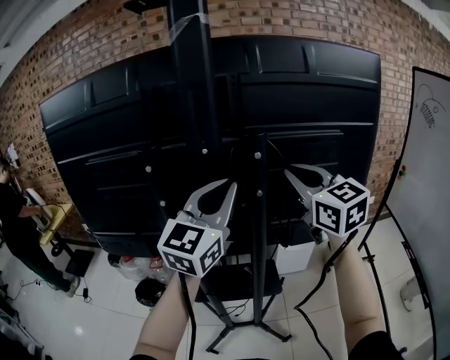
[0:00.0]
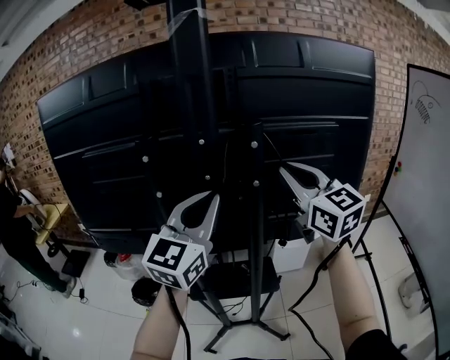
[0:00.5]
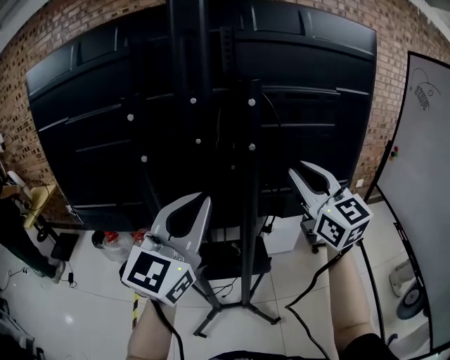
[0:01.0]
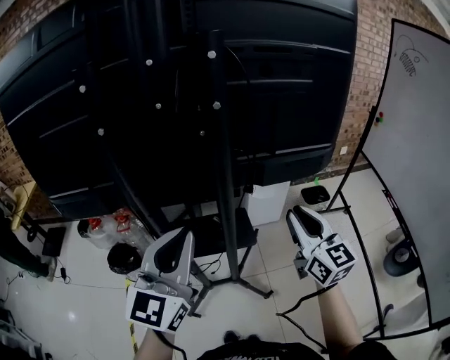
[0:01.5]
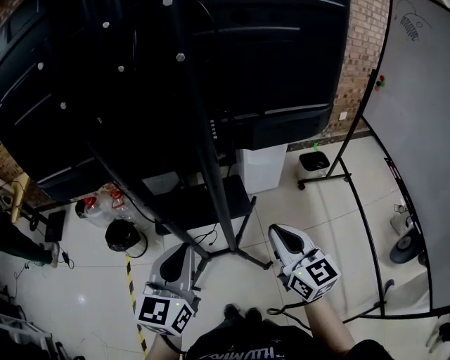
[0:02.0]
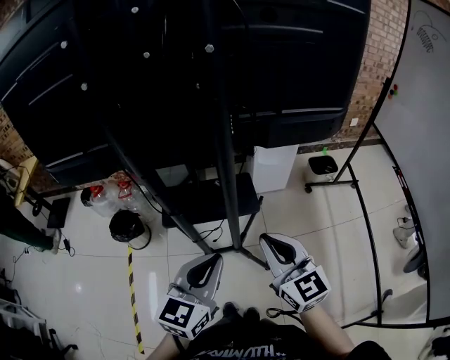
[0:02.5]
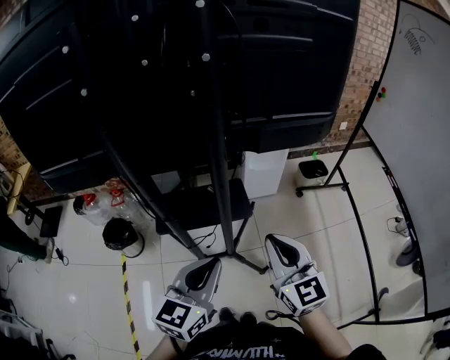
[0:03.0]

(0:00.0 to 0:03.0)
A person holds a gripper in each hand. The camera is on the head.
0:00.0 - 0:01.5: Both grippers travel together downward and backward, approximately 25 cm.
0:01.5 - 0:03.0: The left gripper moves downward and backward, roughly 20 cm, and swivels roughly 30 degrees; the right gripper heads backward, downward and to the left, covering about 15 cm.

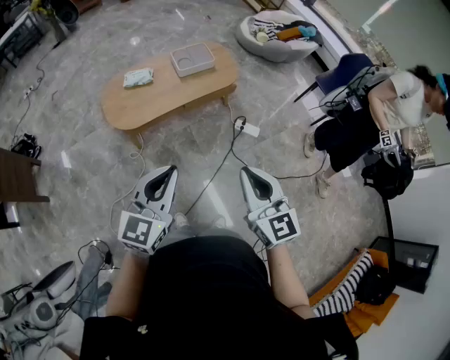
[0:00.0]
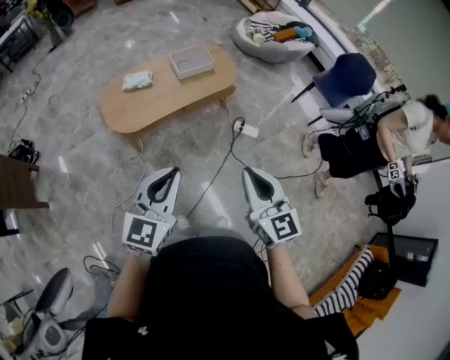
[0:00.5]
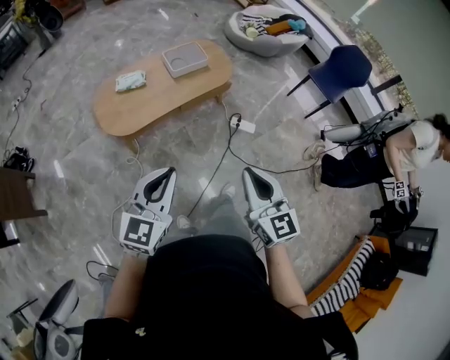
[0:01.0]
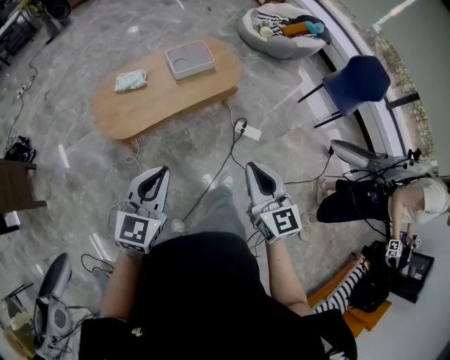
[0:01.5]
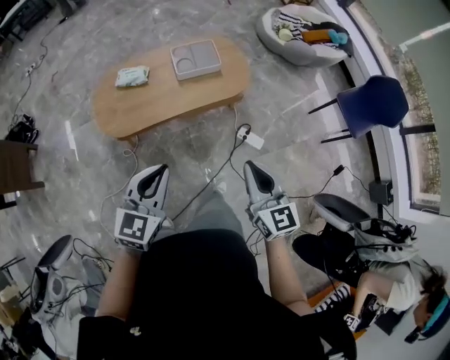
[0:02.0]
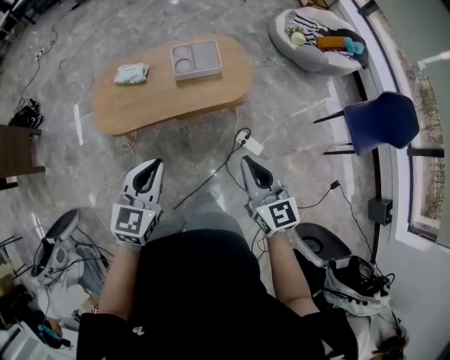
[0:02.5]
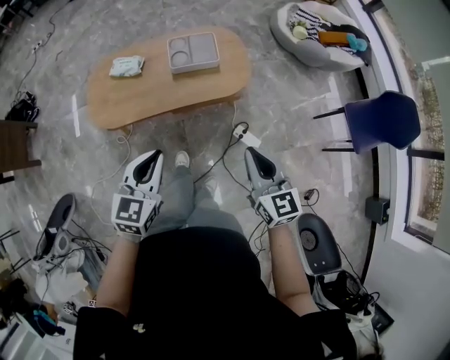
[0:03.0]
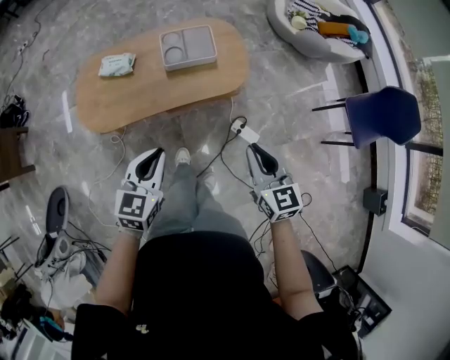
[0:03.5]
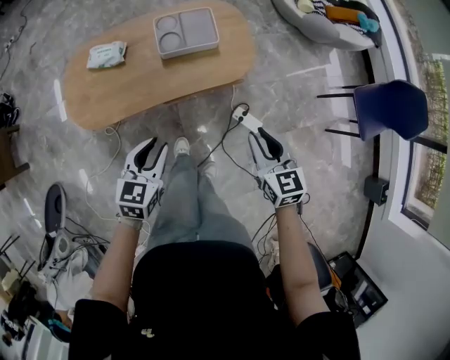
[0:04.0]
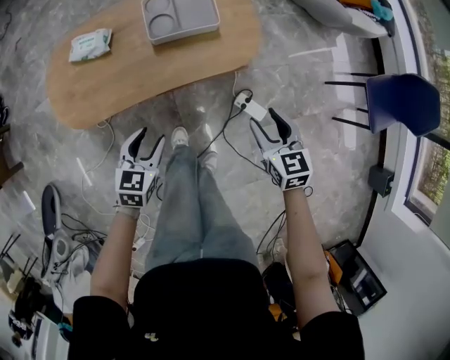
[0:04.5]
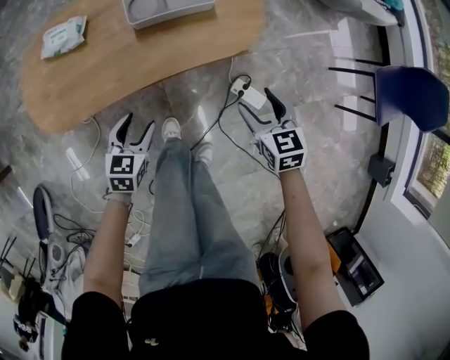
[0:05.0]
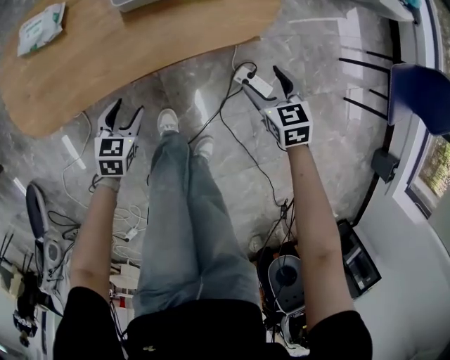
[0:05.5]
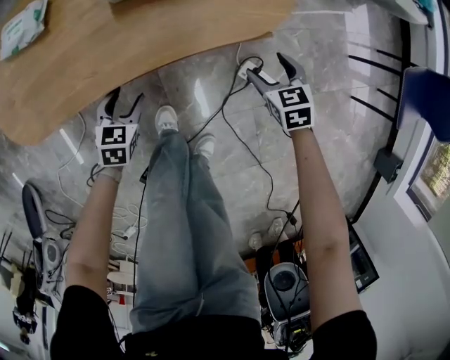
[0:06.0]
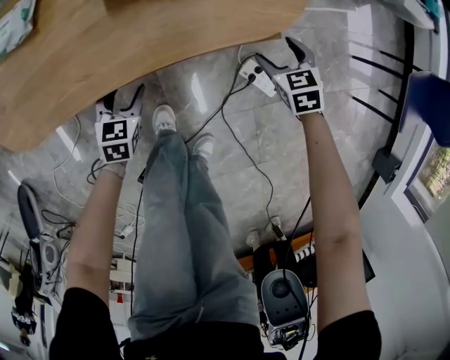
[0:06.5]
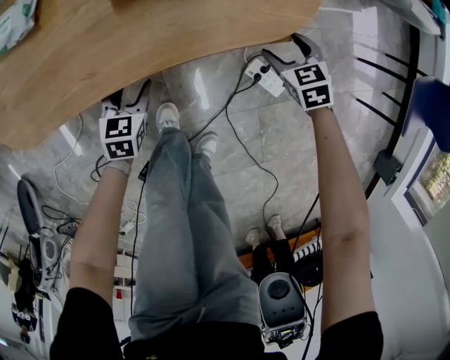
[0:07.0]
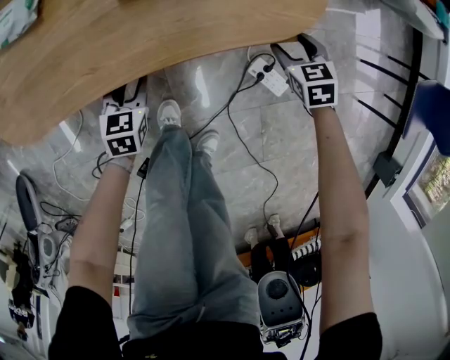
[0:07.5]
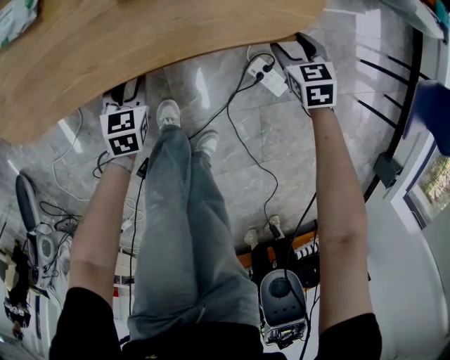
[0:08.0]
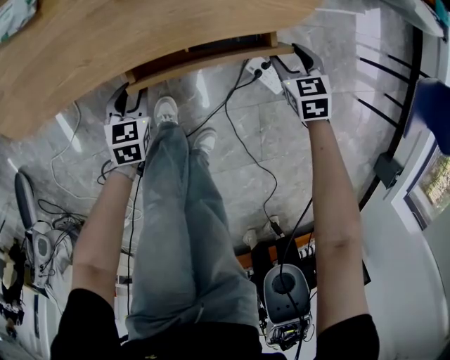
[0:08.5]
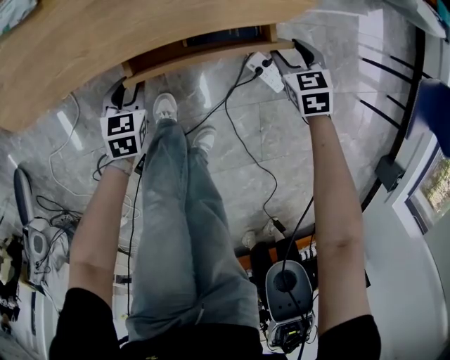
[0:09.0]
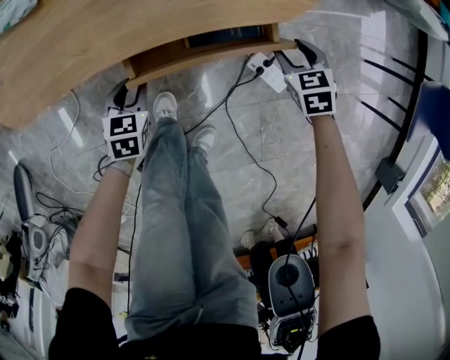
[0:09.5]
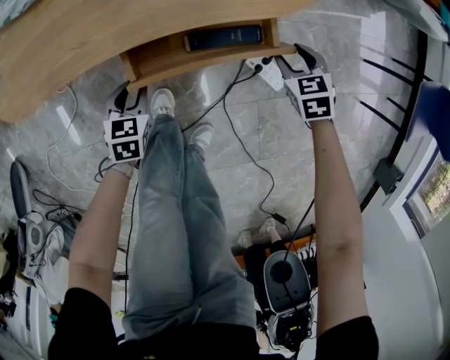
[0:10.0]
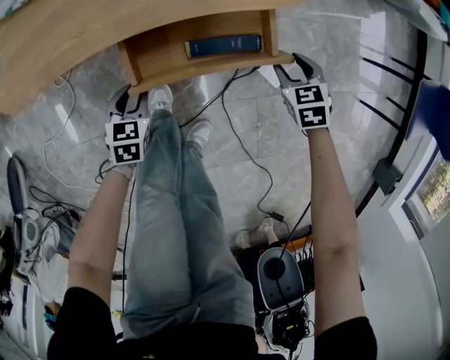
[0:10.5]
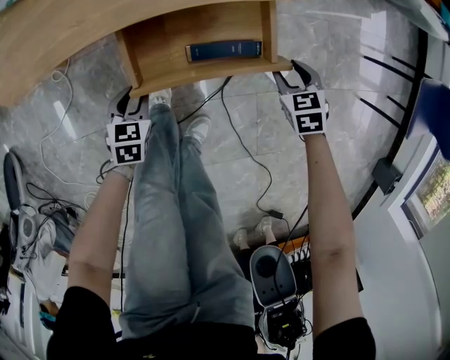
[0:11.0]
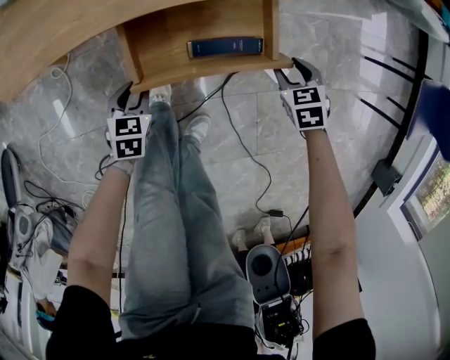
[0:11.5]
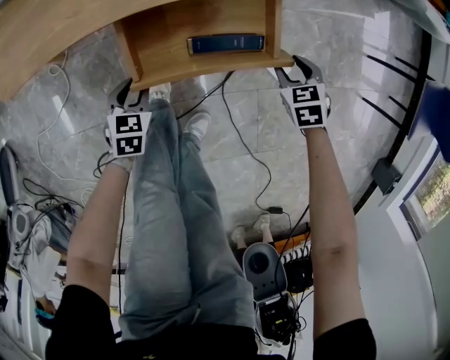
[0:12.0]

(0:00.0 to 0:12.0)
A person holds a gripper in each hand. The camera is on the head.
0:00.0 - 0:02.0: Both grippers travel together forward, approximately 25 cm.
0:02.0 - 0:04.0: The left gripper is displaced downward and forward by about 30 cm, swivels approximately 20 degrees, and opens up, while the right gripper goes about 30 cm forward and downward.
0:04.0 - 0:06.0: The grippers both shift downward by roughly 50 cm. The left gripper opens up. Meanwhile the right gripper rotates about 30 degrees, and opens its fingers.
0:06.0 - 0:08.0: The left gripper closes its fingers. Meanwhile the right gripper heads forward, covering about 5 cm.
0:08.0 - 0:10.0: Both grippers travel together backward, approximately 10 cm.
0:10.0 - 0:12.0: The grippers both shift backward by roughly 10 cm.

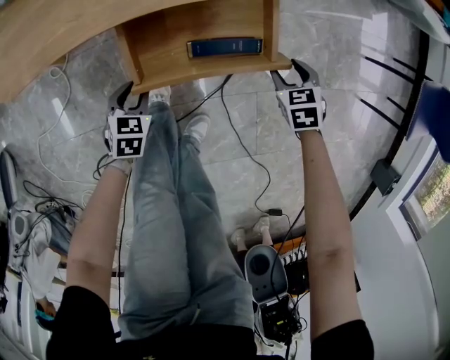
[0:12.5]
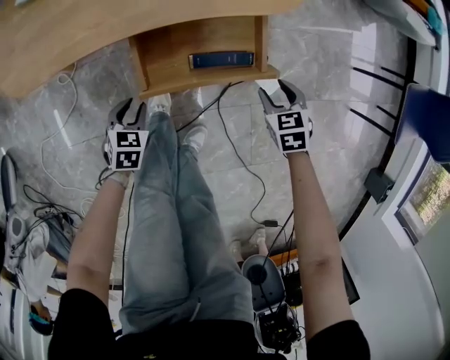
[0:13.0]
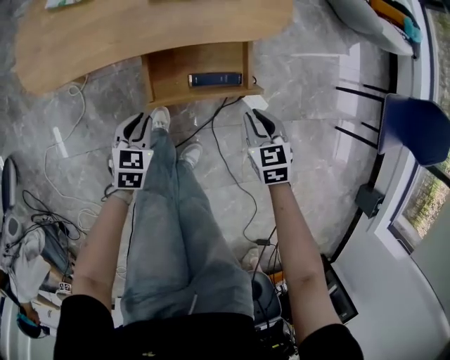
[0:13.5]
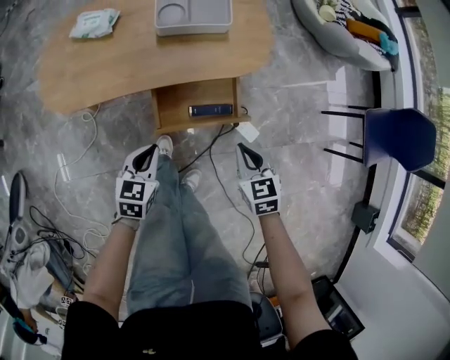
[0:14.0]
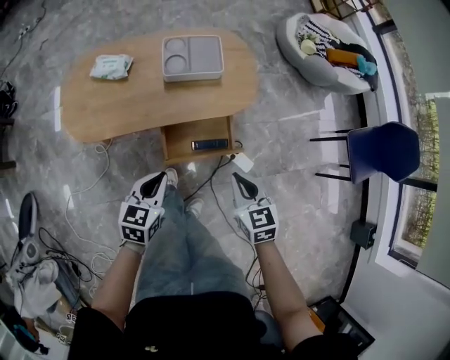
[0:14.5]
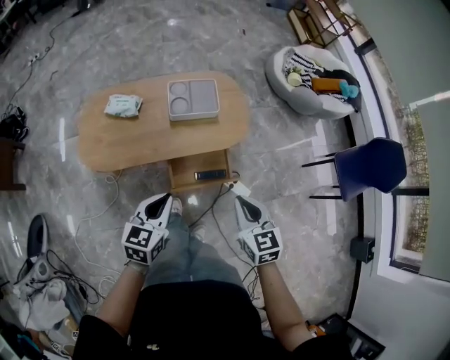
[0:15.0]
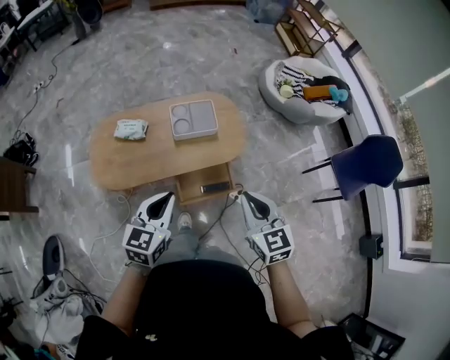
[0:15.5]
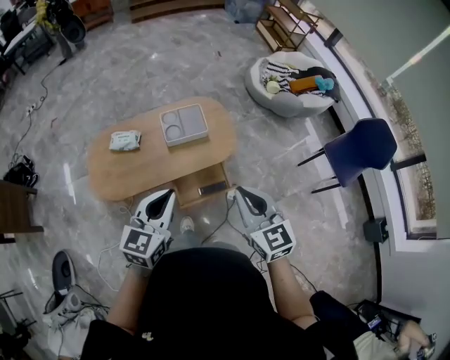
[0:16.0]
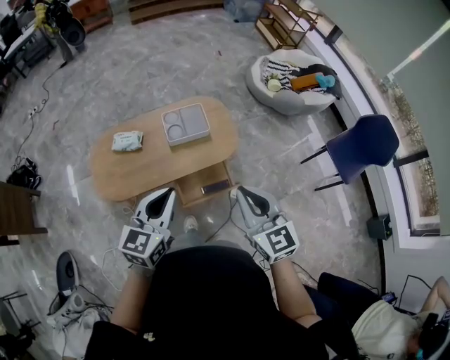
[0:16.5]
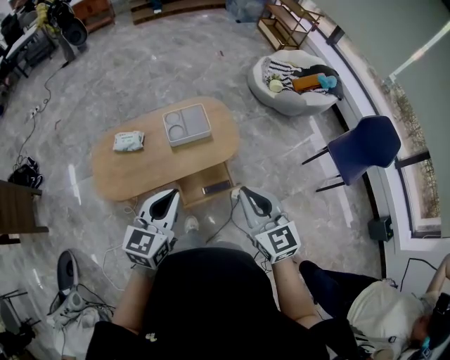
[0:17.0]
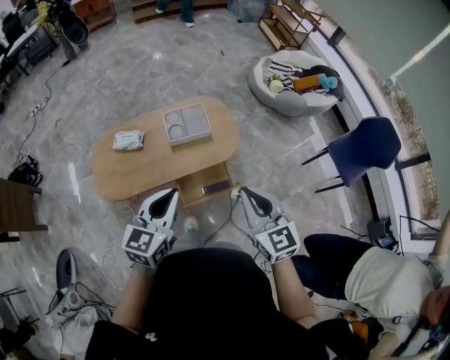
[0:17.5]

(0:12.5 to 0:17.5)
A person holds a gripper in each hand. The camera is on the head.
0:12.5 - 0:15.0: The grippers both shift upward by some 60 cm. The left gripper tips its fingers upward by about 30 degrees, and closes; the right gripper angles its fingers upward, by approximately 40 degrees, and closes its fingers.
0:15.0 - 0:17.5: Both grippers travel together upward, approximately 20 cm.

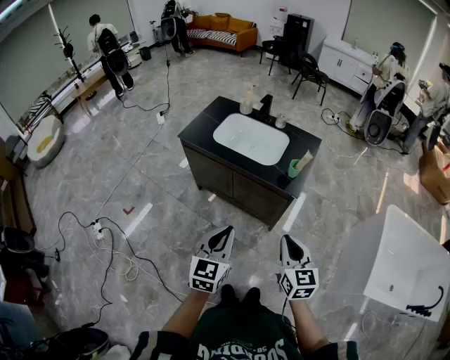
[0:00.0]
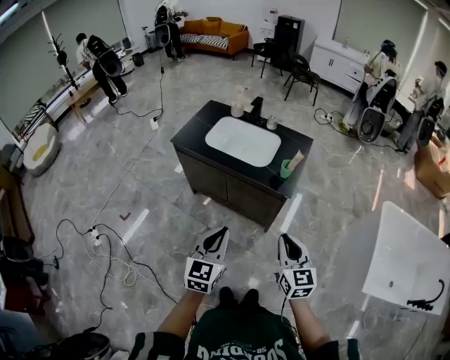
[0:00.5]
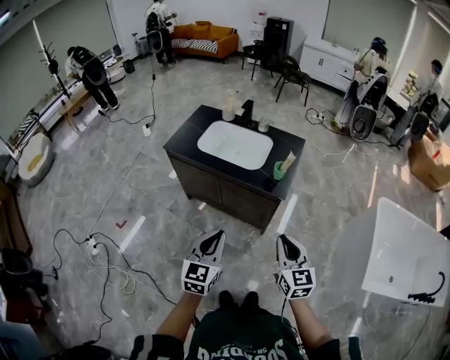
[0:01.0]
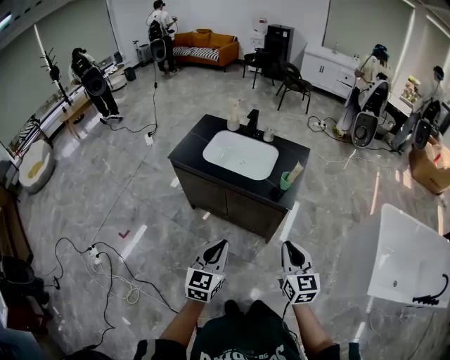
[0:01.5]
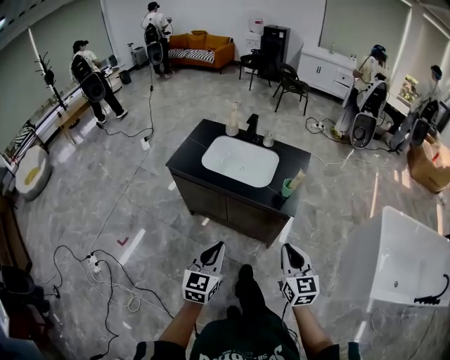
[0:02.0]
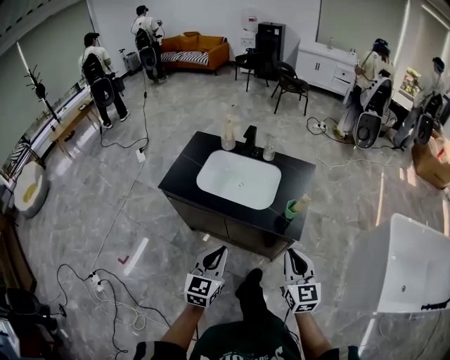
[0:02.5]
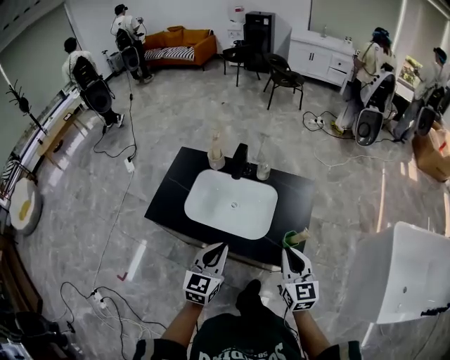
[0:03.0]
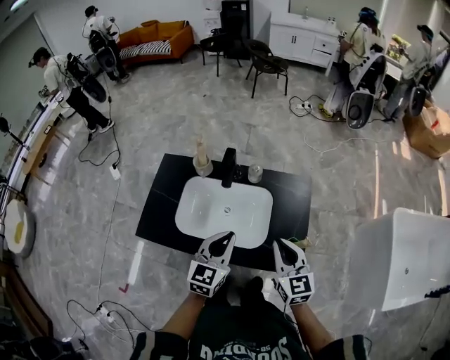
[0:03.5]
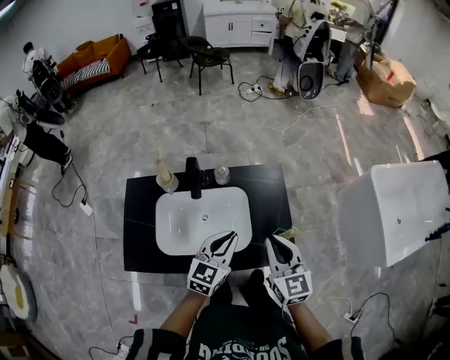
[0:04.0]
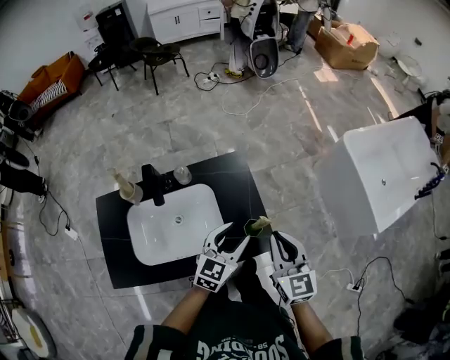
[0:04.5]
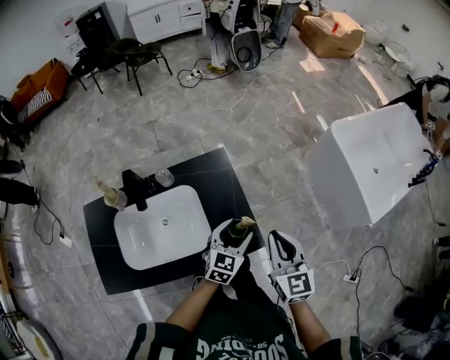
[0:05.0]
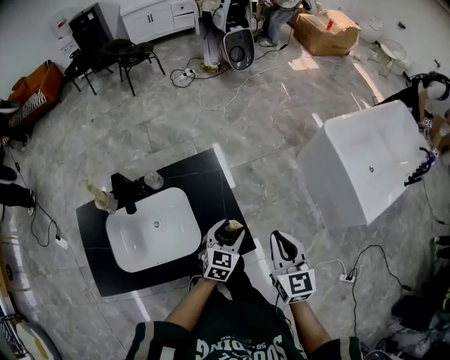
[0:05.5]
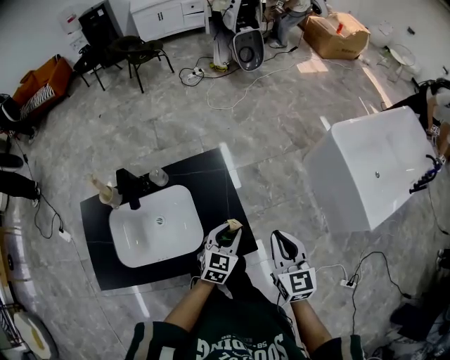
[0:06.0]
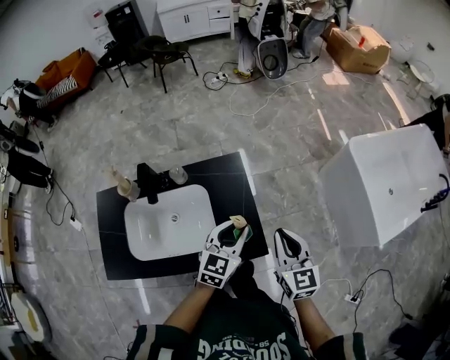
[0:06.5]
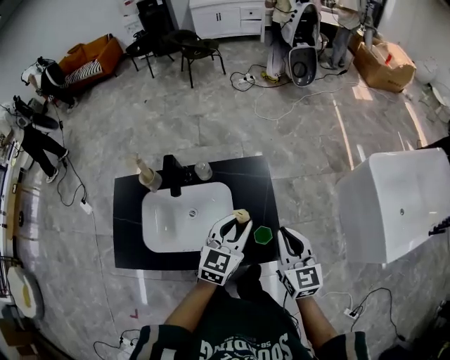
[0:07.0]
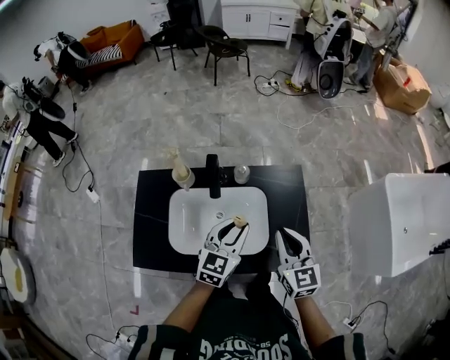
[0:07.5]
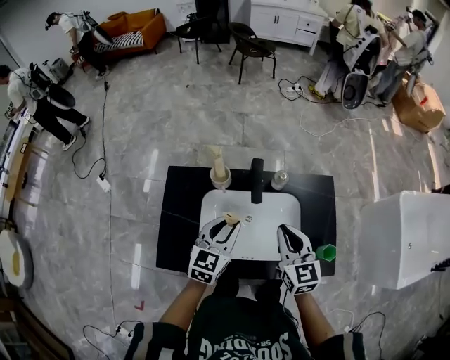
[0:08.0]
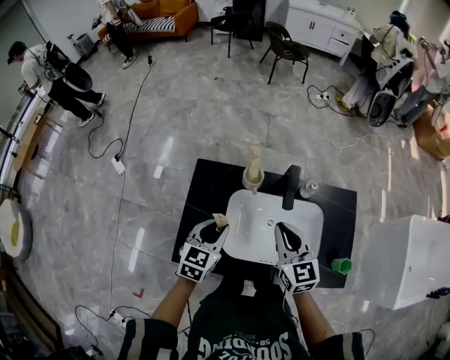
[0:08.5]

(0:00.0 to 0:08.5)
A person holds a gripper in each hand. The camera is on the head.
0:00.0 - 0:02.0: The two grippers go about 5 cm forward.
0:02.0 - 0:04.0: Both grippers are carried roughly 40 cm. The left gripper turns by roughly 40 degrees. Meanwhile the right gripper changes its angle by approximately 20 degrees.
0:04.0 - 0:06.5: The right gripper shifts roughly 20 cm to the right. The left gripper goes roughly 20 cm to the right and forward, and opens its fingers.
0:06.5 - 0:08.5: Both grippers are carried approximately 50 cm. The left gripper swivels about 30 degrees; the right gripper rotates about 30 degrees.
